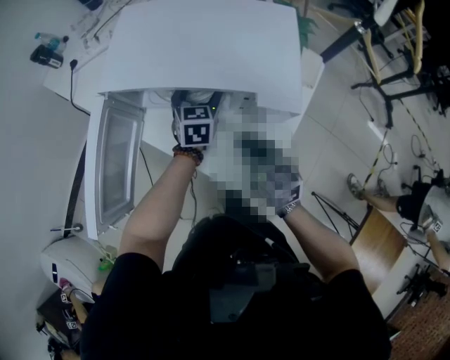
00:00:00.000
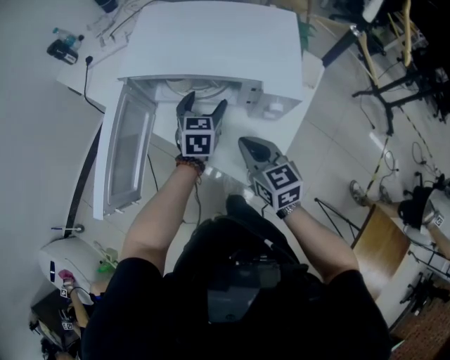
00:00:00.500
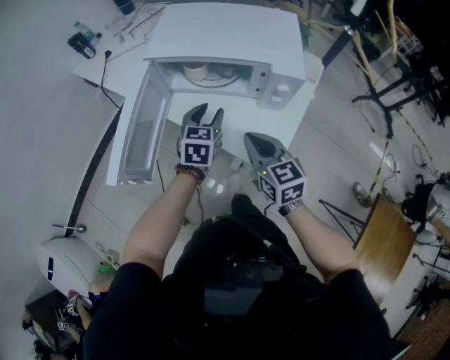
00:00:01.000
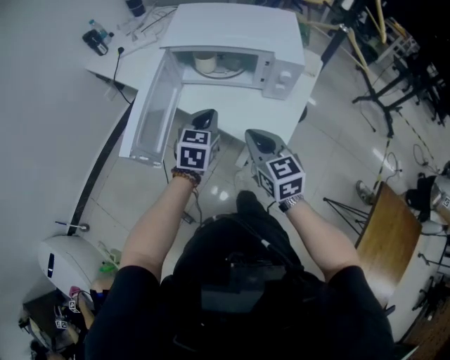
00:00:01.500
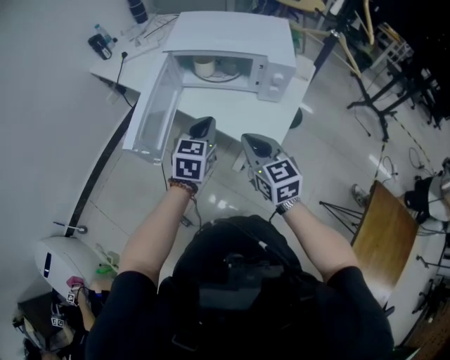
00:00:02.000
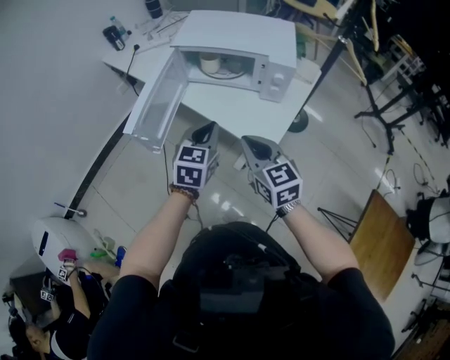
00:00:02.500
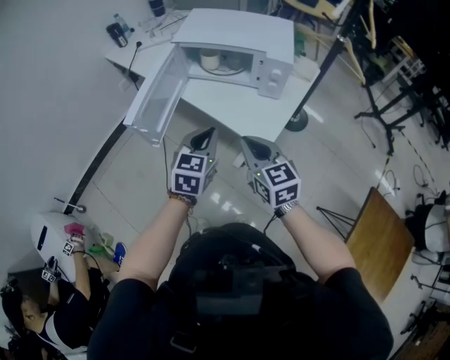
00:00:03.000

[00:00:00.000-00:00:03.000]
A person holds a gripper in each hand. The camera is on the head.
00:00:00.000 to 00:00:01.500: The left gripper travels backward and to the left by some 25 cm, and closes; the right gripper travels backward, to the left and upward by about 15 cm.
00:00:01.500 to 00:00:03.000: The left gripper is displaced backward and upward by about 15 cm, while the right gripper goes approximately 10 cm backward.

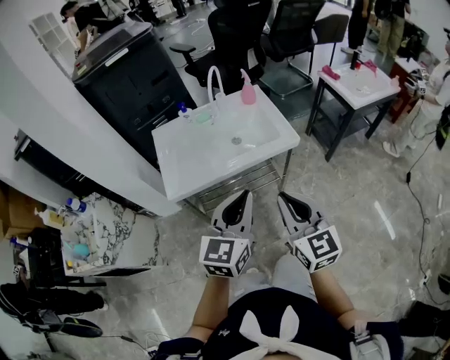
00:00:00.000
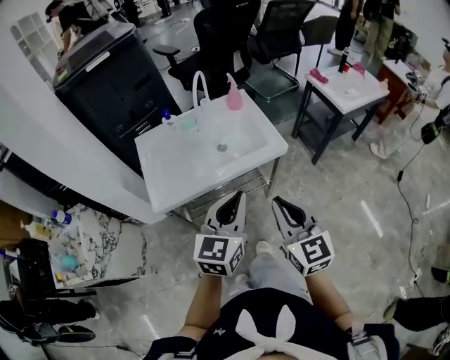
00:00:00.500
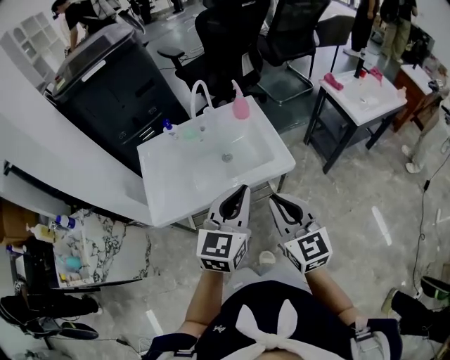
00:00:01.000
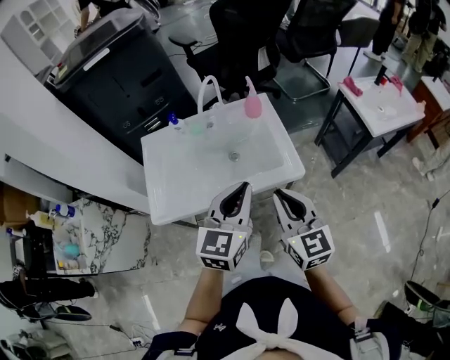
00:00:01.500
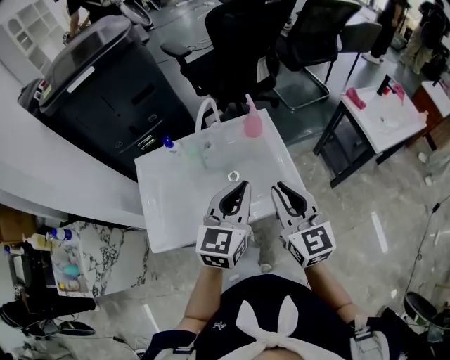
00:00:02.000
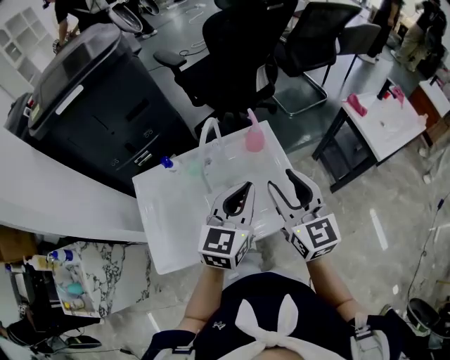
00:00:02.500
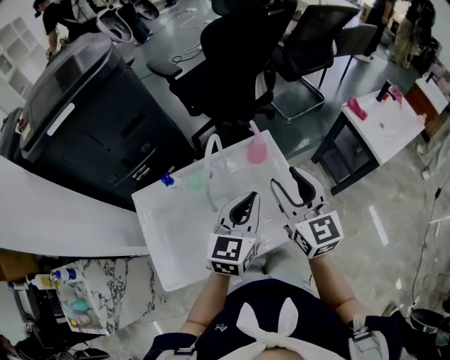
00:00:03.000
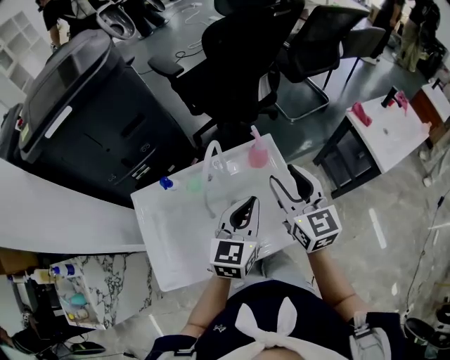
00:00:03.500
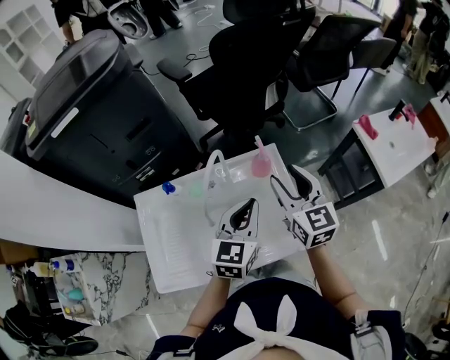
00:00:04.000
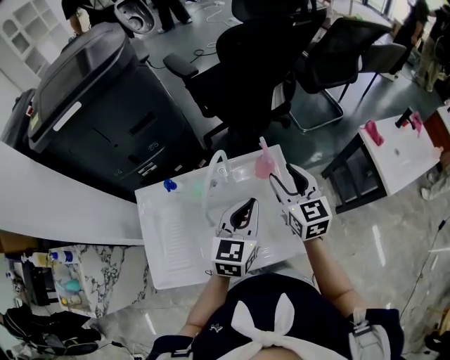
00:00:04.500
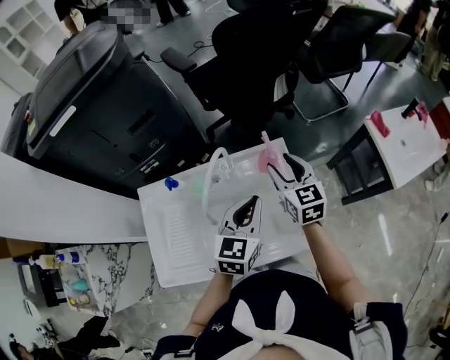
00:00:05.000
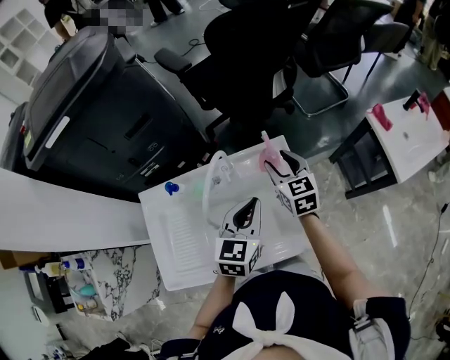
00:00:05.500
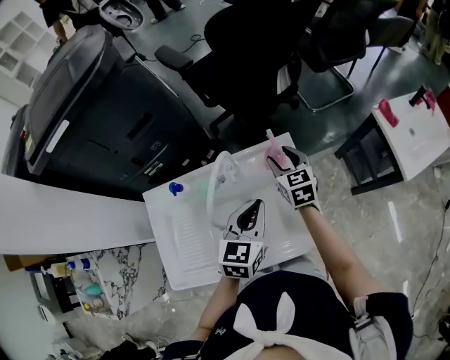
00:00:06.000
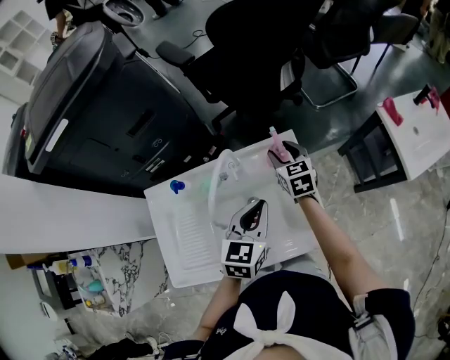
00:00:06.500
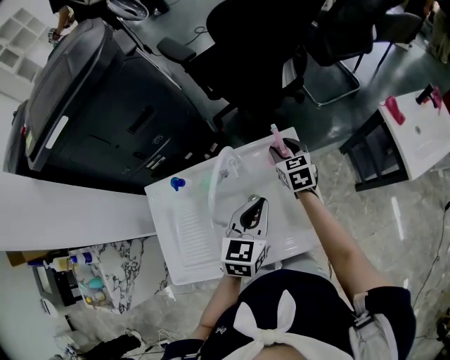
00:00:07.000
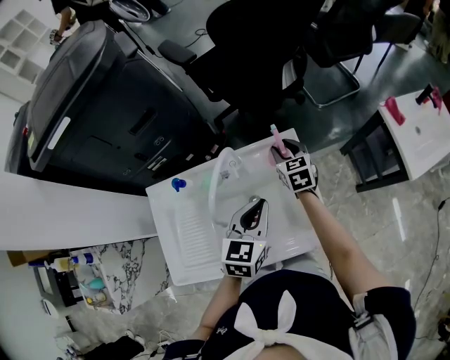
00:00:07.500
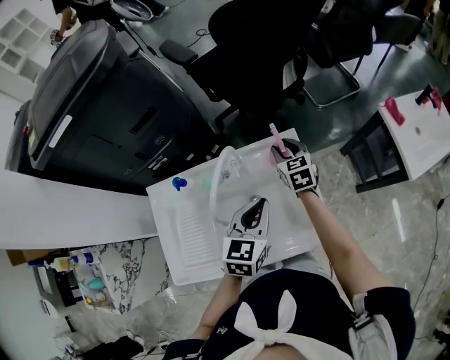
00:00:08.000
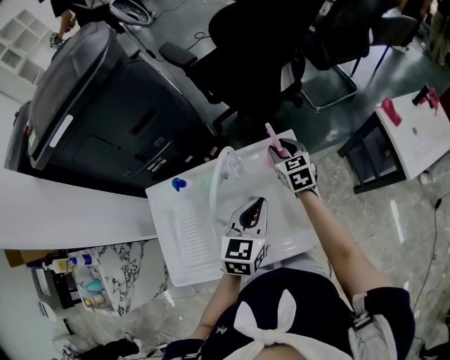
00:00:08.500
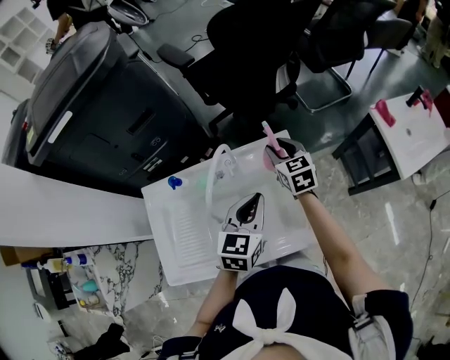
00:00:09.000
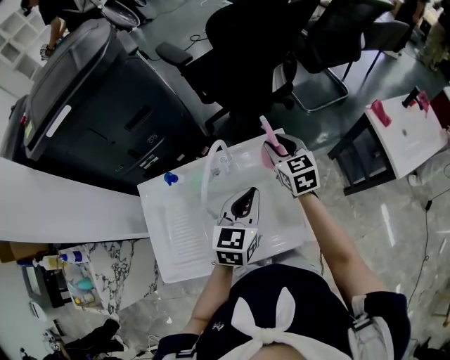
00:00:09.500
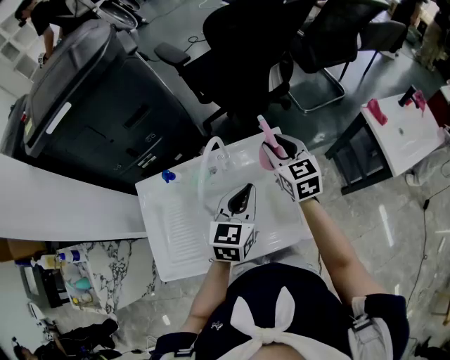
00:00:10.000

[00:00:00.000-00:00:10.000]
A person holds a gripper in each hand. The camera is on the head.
00:00:00.000 to 00:00:02.000: Both grippers move forward, some 30 cm.
00:00:02.000 to 00:00:04.000: The grippers both shift forward by roughly 20 cm. The right gripper opens.
00:00:04.000 to 00:00:06.000: The left gripper moves some 5 cm; the right gripper is displaced downward and forward by about 20 cm.
00:00:06.000 to 00:00:08.000: The grippers make only small movements.
00:00:08.000 to 00:00:10.000: The right gripper shifts roughly 15 cm upward and backward.

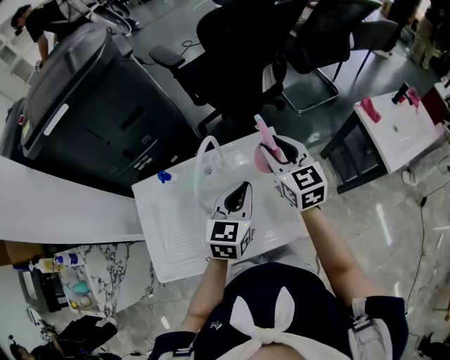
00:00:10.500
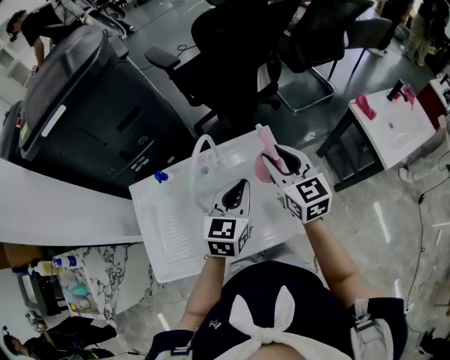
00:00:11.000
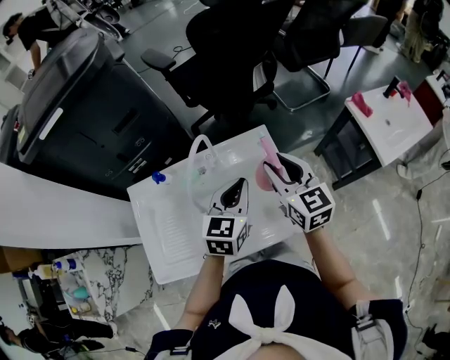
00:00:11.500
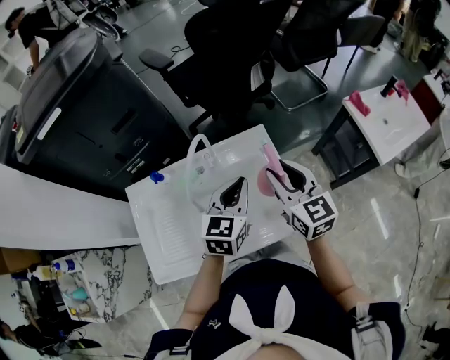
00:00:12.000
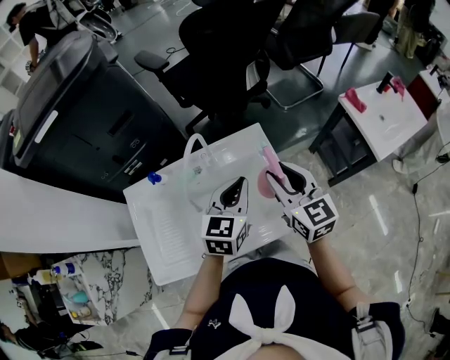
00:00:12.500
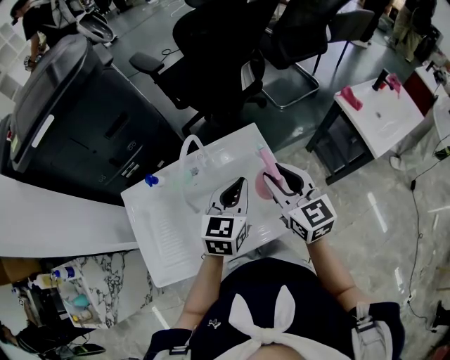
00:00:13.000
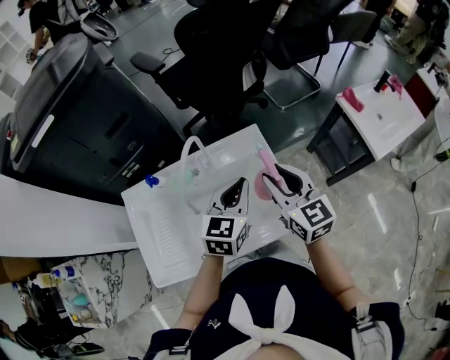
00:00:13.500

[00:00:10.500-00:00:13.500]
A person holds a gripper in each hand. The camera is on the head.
00:00:10.500 to 00:00:12.000: The right gripper goes about 10 cm backward.
00:00:12.000 to 00:00:13.500: The grippers make only small movements.

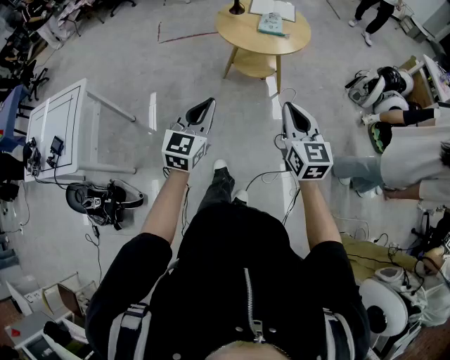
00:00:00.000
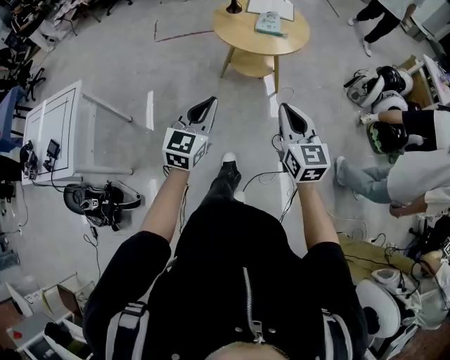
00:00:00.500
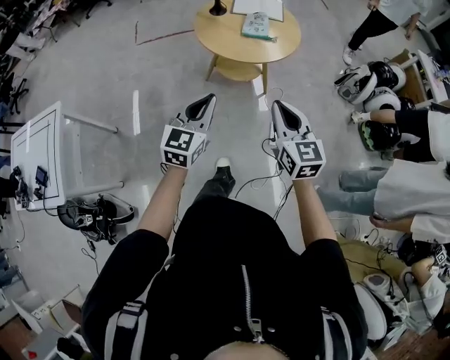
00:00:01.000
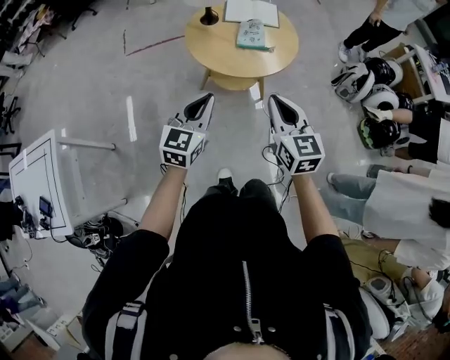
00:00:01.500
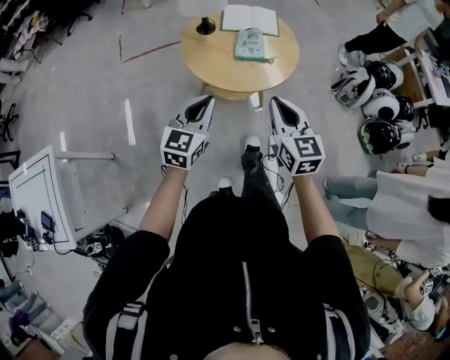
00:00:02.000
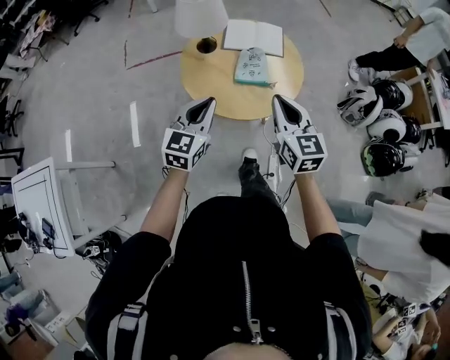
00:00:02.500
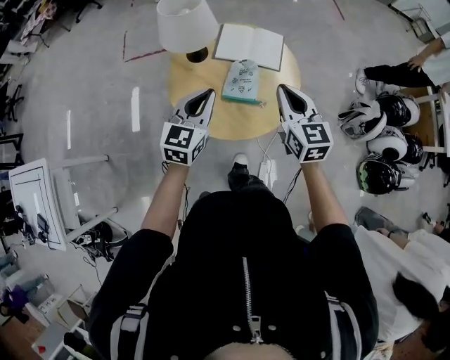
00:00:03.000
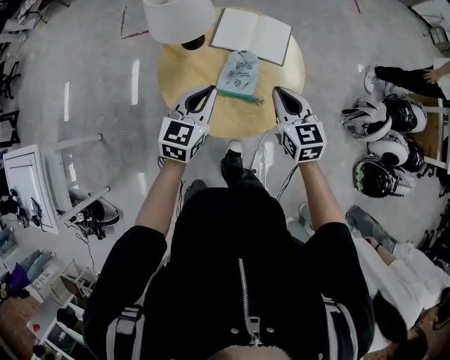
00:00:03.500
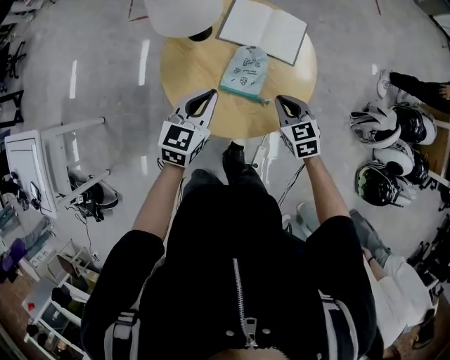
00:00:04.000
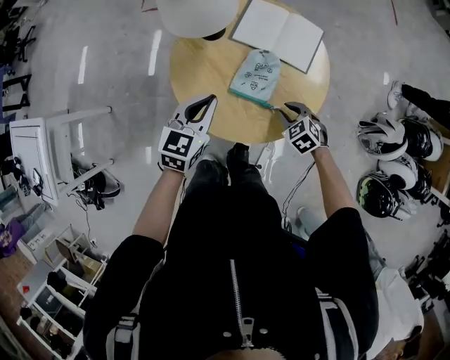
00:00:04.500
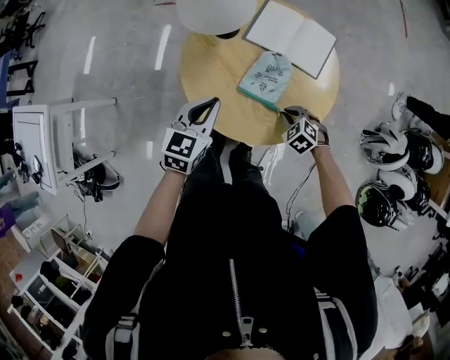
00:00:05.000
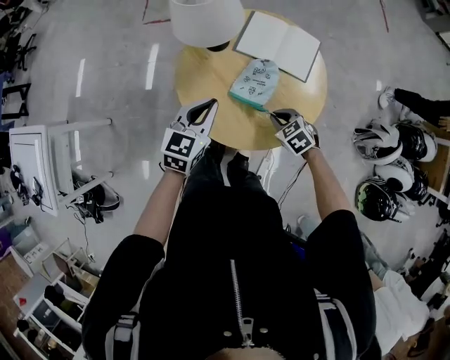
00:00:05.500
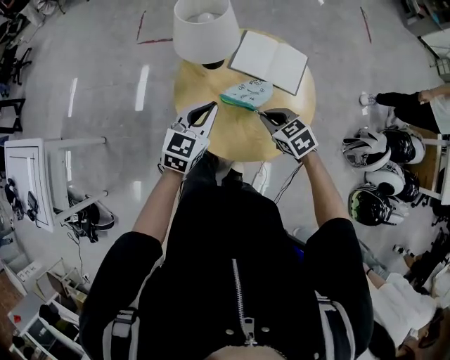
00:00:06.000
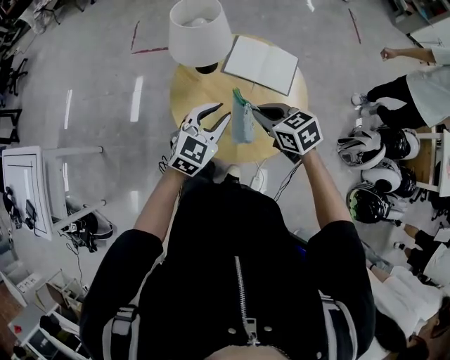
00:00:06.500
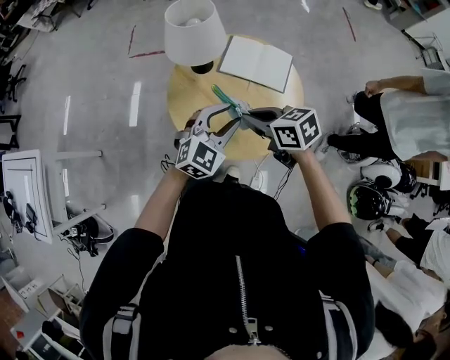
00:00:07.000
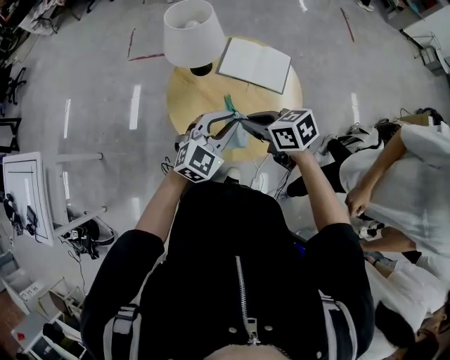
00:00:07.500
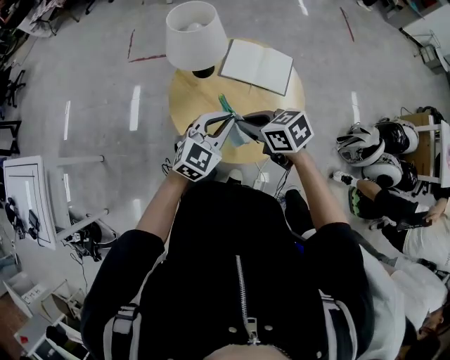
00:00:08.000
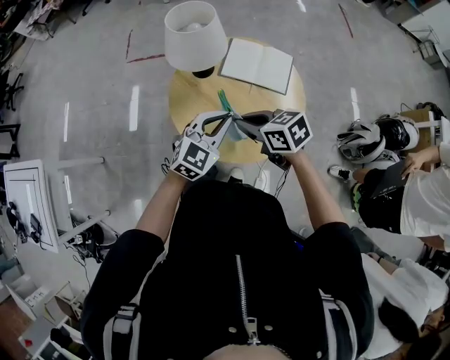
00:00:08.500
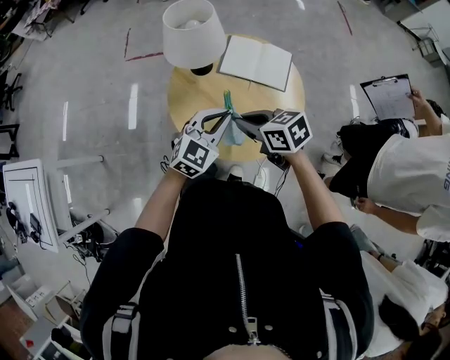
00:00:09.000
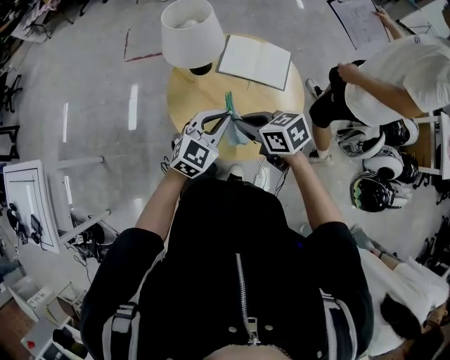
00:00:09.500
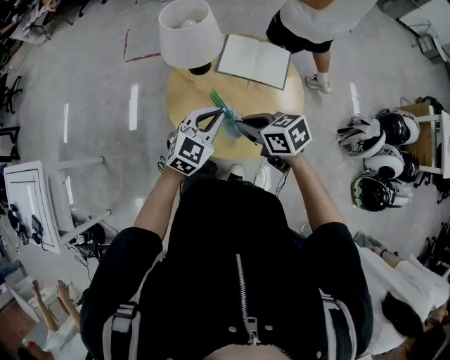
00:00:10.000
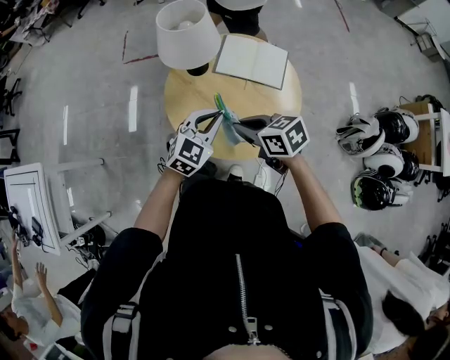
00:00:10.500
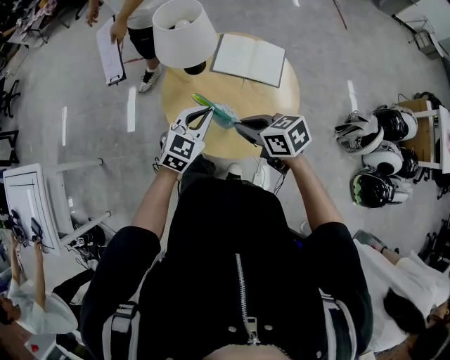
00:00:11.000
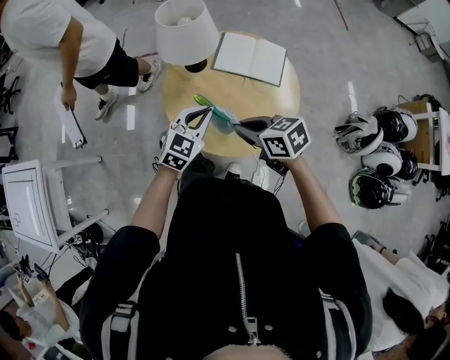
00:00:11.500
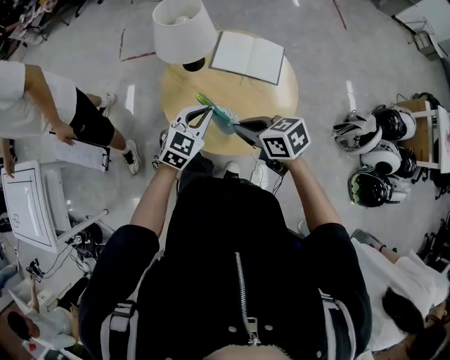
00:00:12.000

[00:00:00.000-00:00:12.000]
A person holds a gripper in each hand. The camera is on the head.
00:00:00.000 to 00:00:02.000: The two grippers go roughly 35 cm forward.
00:00:02.000 to 00:00:04.000: The left gripper is displaced forward and to the right by about 35 cm, while the right gripper shifts approximately 40 cm forward, downward and to the right, and swivels some 40 degrees.
00:00:04.000 to 00:00:06.000: The left gripper ends up some 5 cm from where it was, while the right gripper is displaced to the left by about 10 cm, and goes downward and returns, approximately 10 cm each way.
00:00:06.000 to 00:00:08.000: The left gripper moves backward and to the right, approximately 10 cm, turns by about 20 degrees, and opens, then closes again. Meanwhile the right gripper shifts about 10 cm upward and to the left, and rotates about 20 degrees.
00:00:08.000 to 00:00:12.000: The grippers move only a little.
